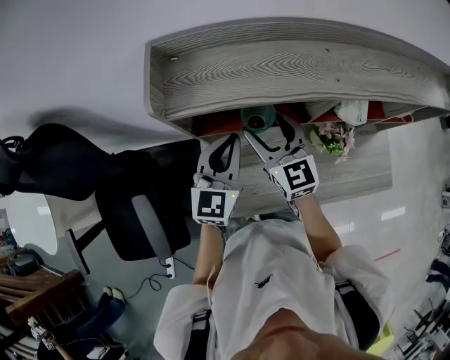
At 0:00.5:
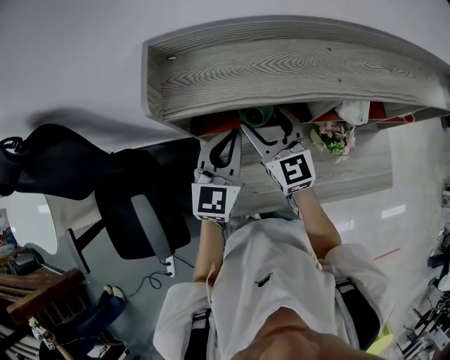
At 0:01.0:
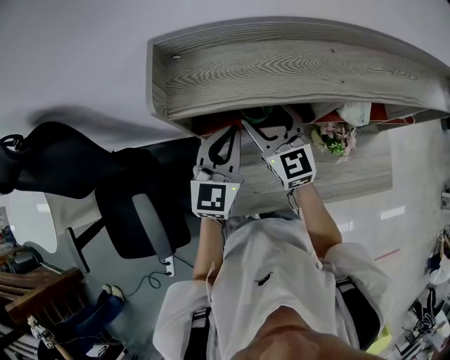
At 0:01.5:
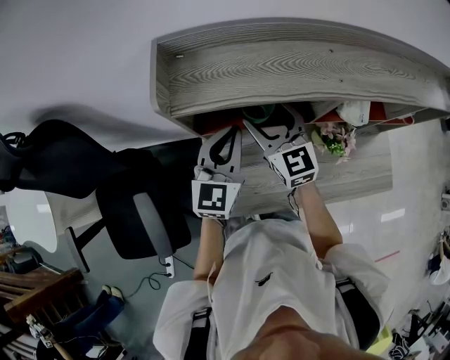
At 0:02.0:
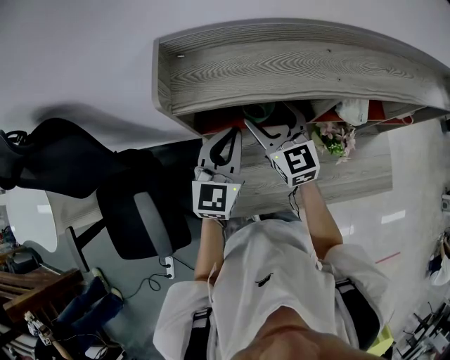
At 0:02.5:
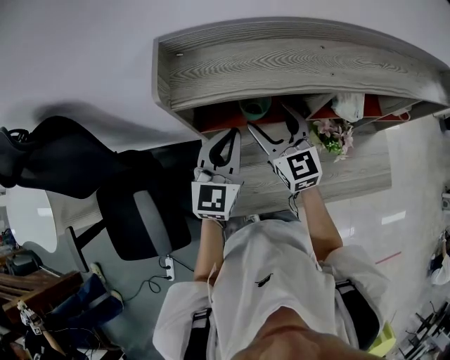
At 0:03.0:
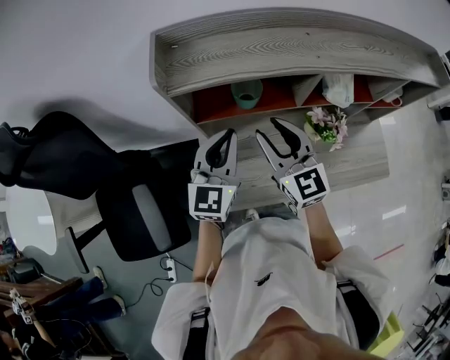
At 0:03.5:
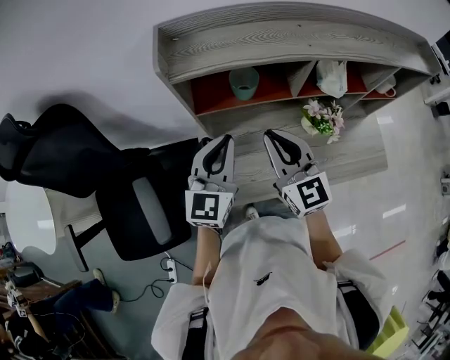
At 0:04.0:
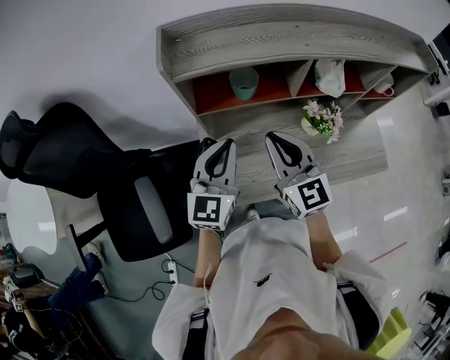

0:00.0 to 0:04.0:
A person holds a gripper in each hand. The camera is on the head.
0:00.0 to 0:02.0: There are only small adjustments of the grippers.
0:02.0 to 0:04.0: The two grippers go some 15 cm backward. The right gripper closes.

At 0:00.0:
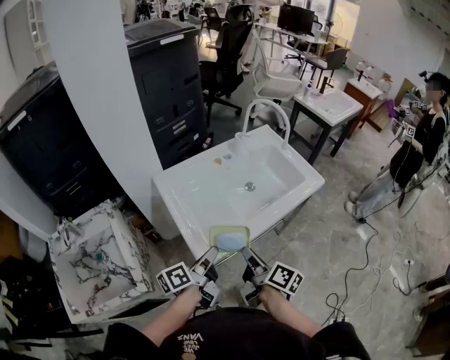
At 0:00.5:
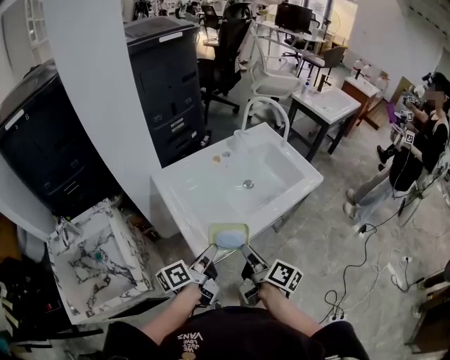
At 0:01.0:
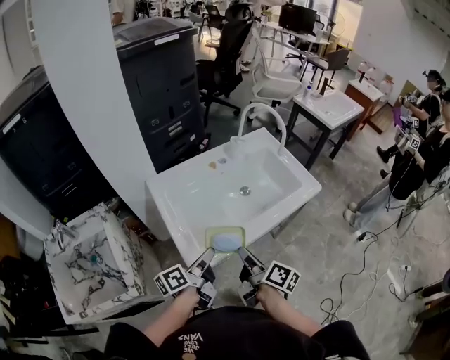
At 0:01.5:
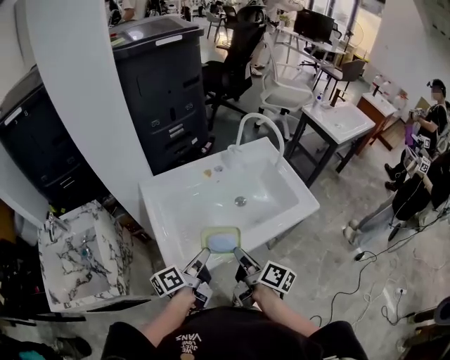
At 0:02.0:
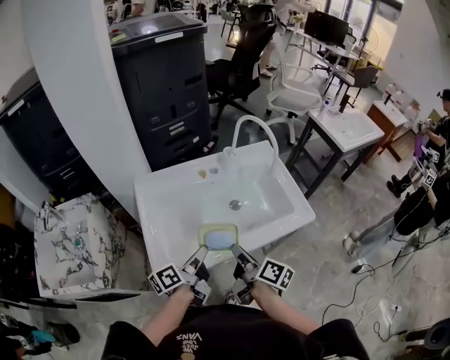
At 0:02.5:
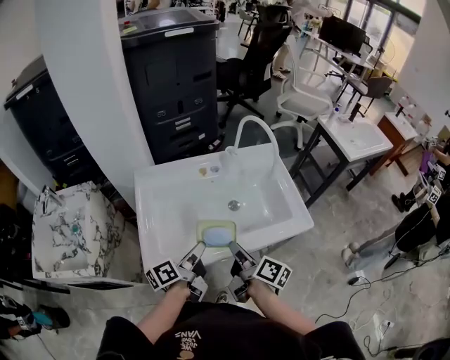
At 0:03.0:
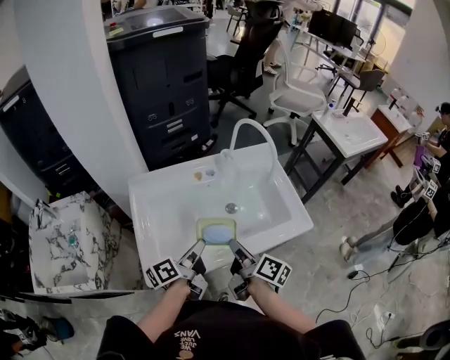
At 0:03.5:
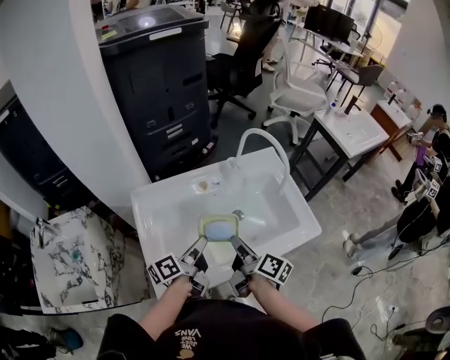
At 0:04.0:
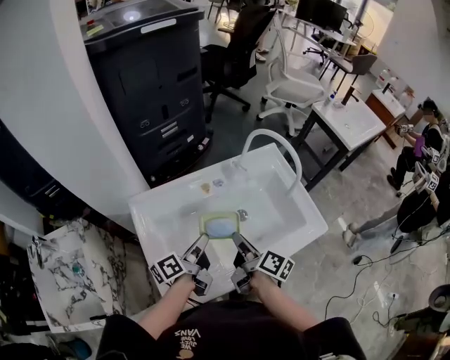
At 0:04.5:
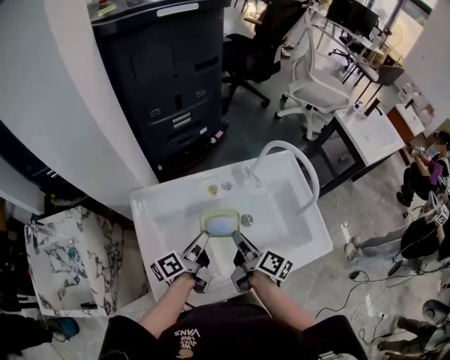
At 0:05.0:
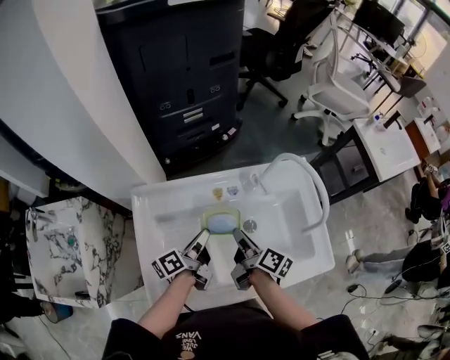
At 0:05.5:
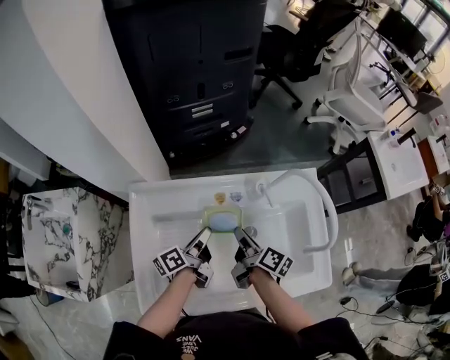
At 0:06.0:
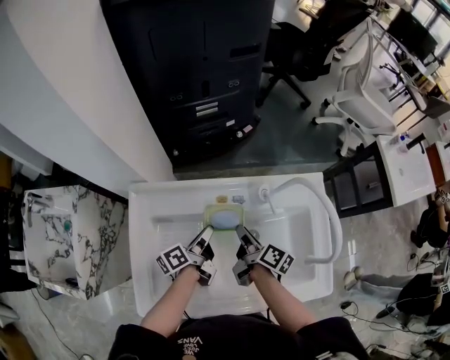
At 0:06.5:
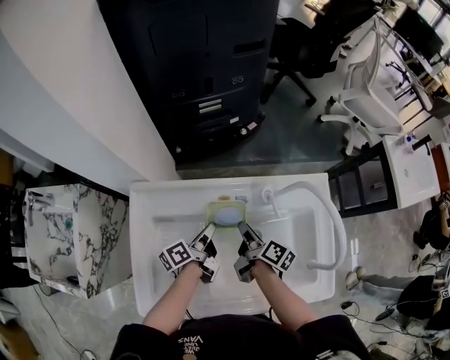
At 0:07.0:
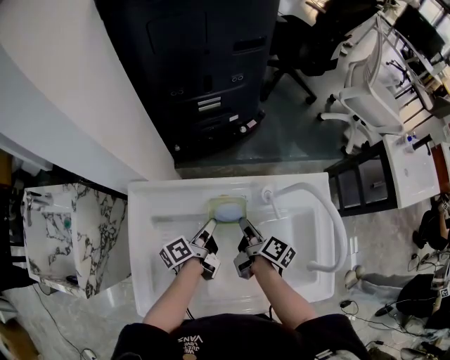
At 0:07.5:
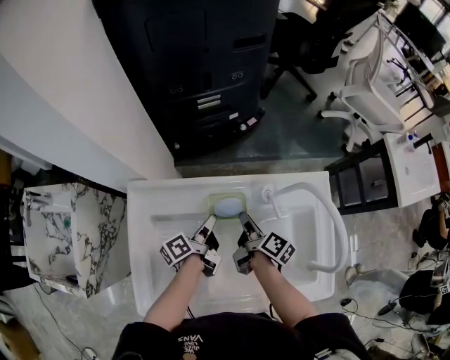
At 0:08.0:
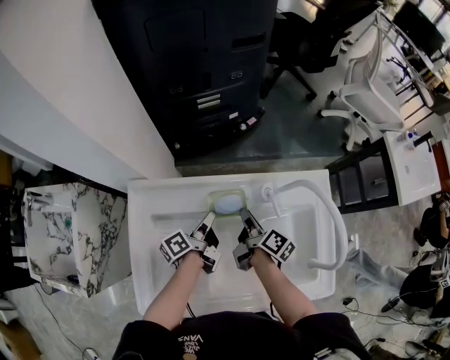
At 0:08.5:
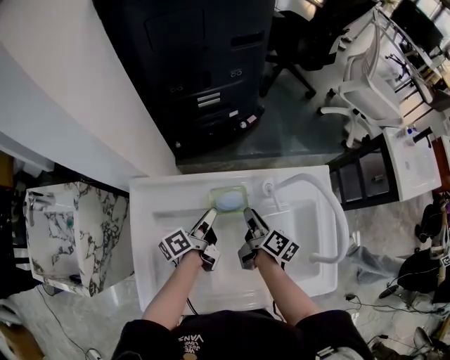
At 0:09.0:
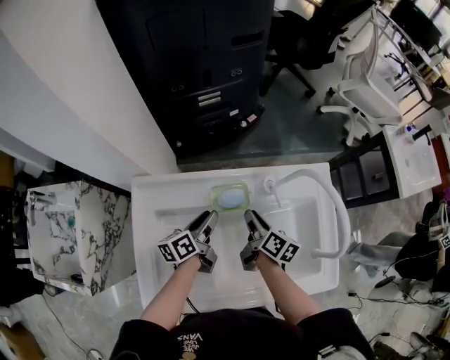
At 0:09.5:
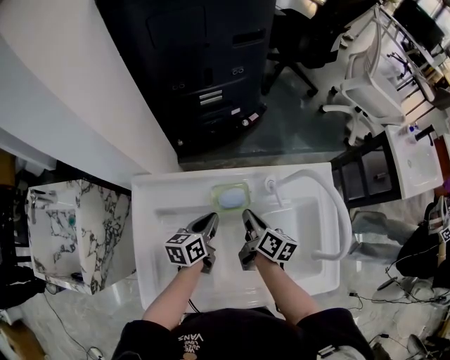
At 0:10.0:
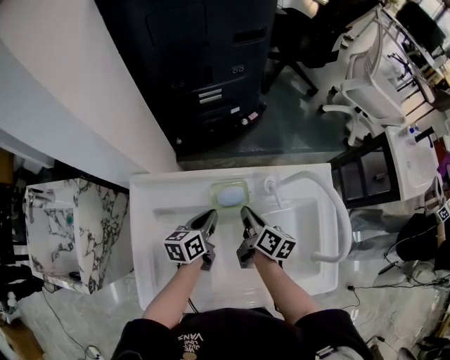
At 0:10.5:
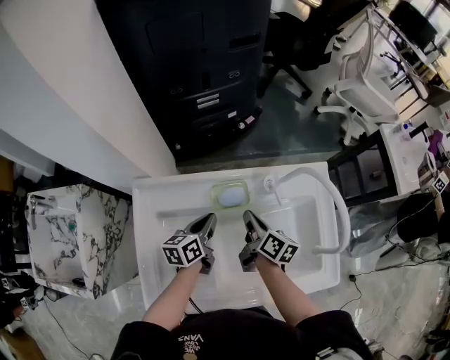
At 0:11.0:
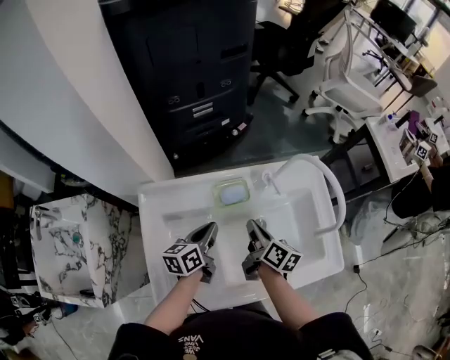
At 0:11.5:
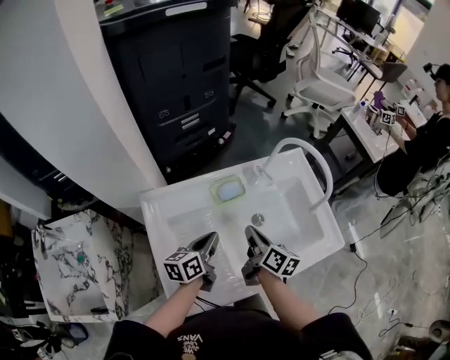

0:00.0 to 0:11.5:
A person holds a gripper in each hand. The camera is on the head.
0:00.0 to 0:02.0: The right gripper goes approximately 15 cm forward and to the right; the left gripper is displaced to the right and forward by approximately 15 cm.
0:02.0 to 0:04.0: Both grippers move forward, about 15 cm.
0:04.0 to 0:06.0: The grippers both shift forward and downward by some 15 cm. The right gripper changes its angle by about 20 degrees. The left gripper changes its angle by approximately 20 degrees.
0:06.0 to 0:07.5: The grippers make only small movements.
0:07.5 to 0:09.5: The left gripper rotates around the line of its fingers by roughly 40 degrees, clockwise from behind.
0:09.5 to 0:11.5: Both grippers travel together backward and upward, some 10 cm.

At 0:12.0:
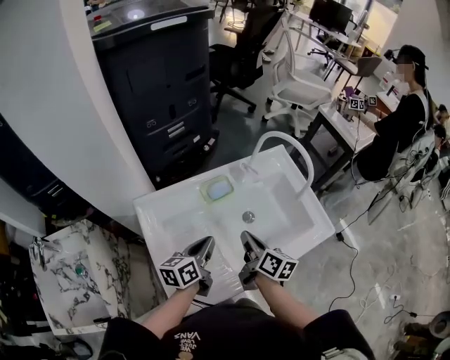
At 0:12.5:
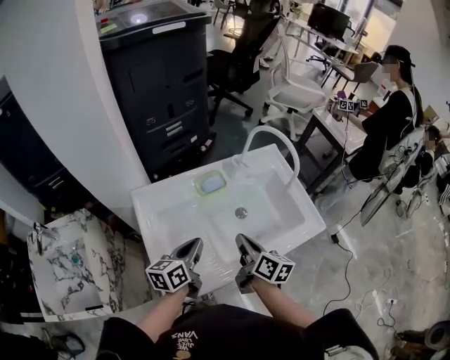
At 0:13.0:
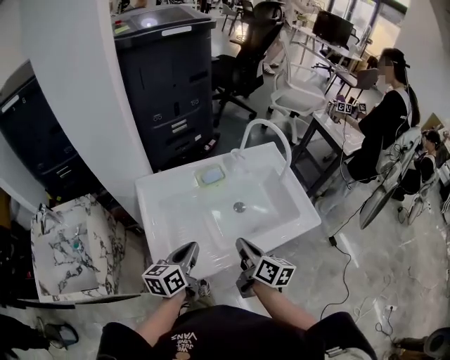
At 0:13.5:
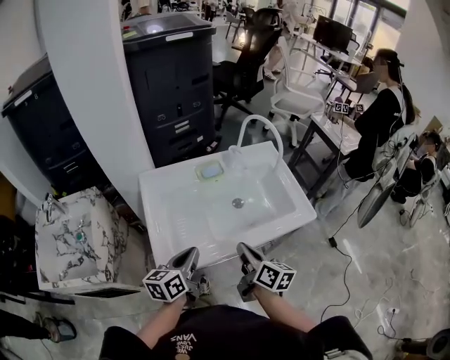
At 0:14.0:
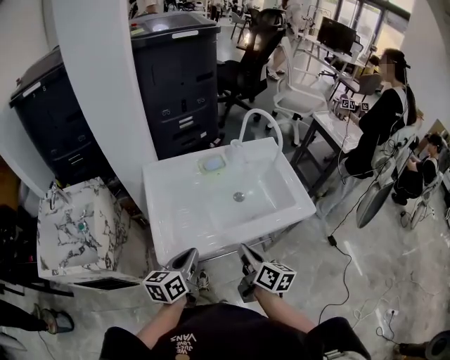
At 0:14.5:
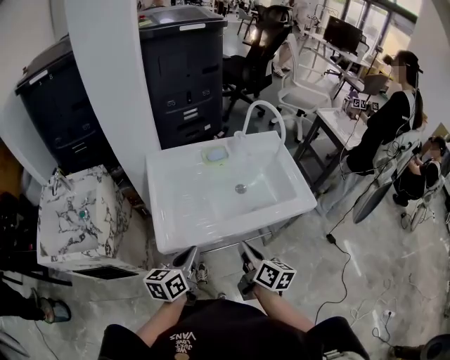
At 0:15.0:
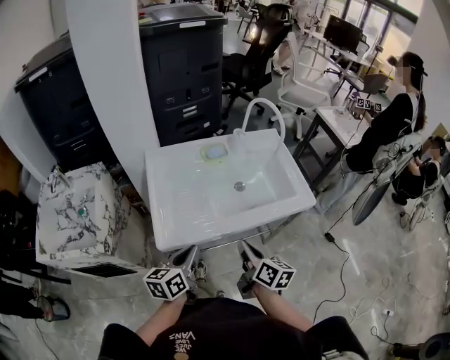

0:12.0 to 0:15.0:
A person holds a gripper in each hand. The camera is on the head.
0:12.0 to 0:13.5: The grippers both shift backward by approximately 20 cm.
0:13.5 to 0:15.0: The two grippers go about 5 cm backward.

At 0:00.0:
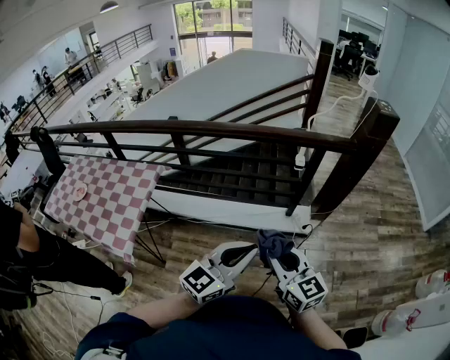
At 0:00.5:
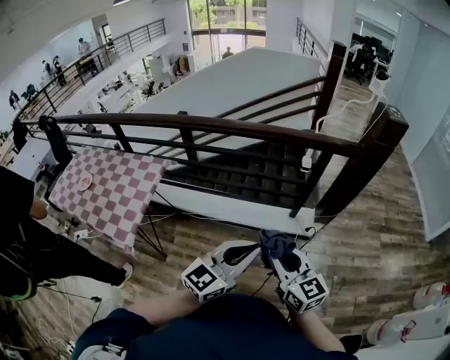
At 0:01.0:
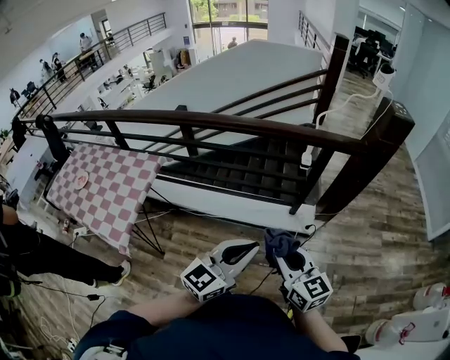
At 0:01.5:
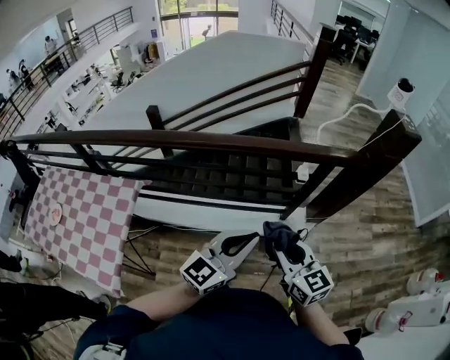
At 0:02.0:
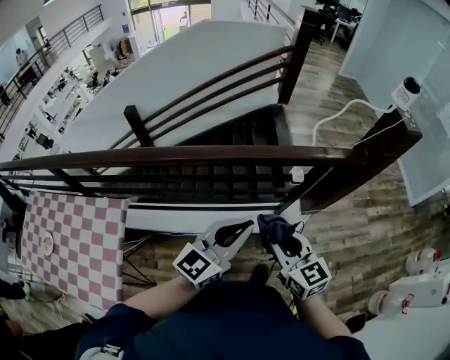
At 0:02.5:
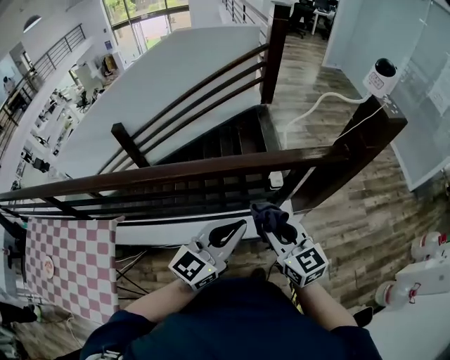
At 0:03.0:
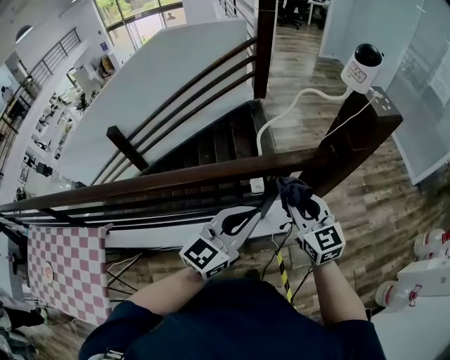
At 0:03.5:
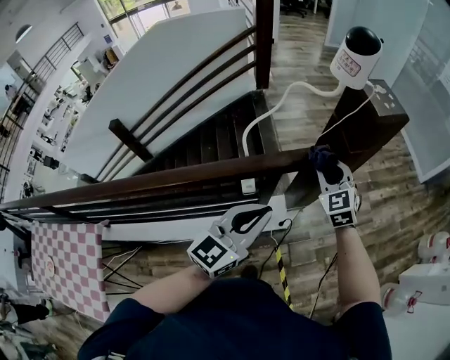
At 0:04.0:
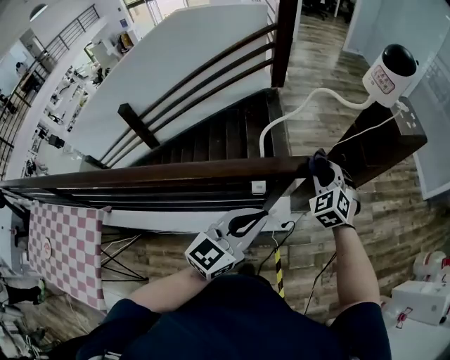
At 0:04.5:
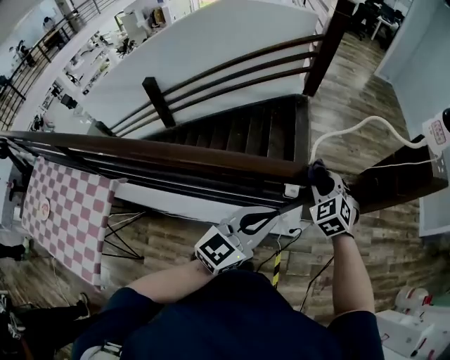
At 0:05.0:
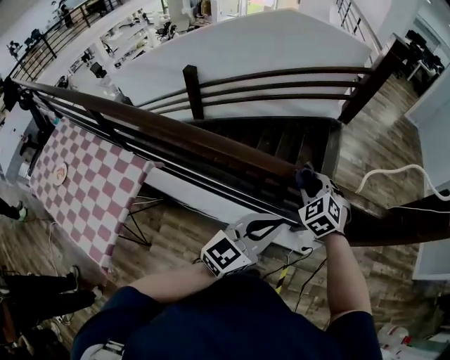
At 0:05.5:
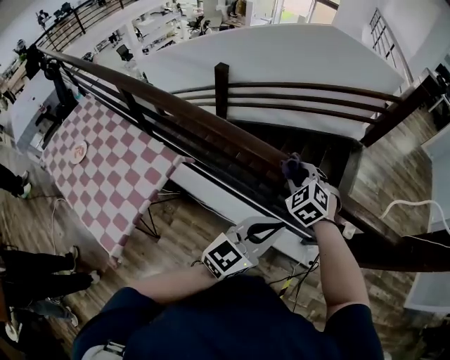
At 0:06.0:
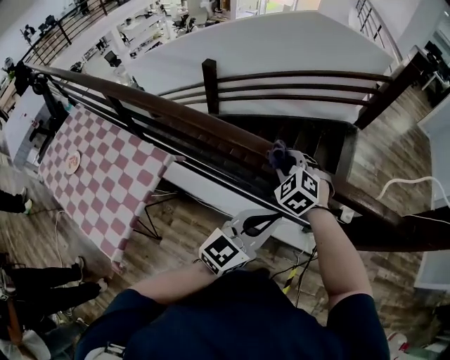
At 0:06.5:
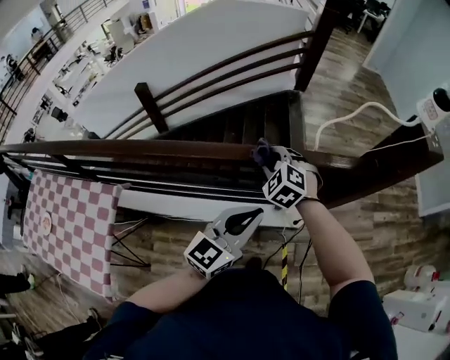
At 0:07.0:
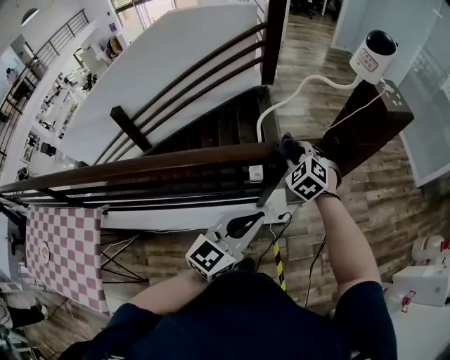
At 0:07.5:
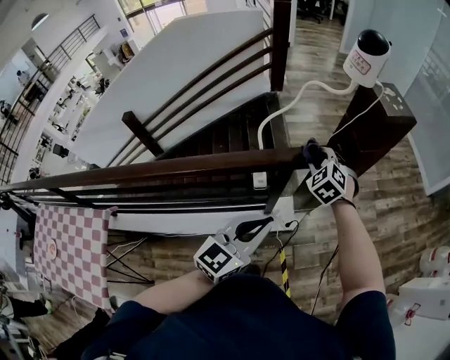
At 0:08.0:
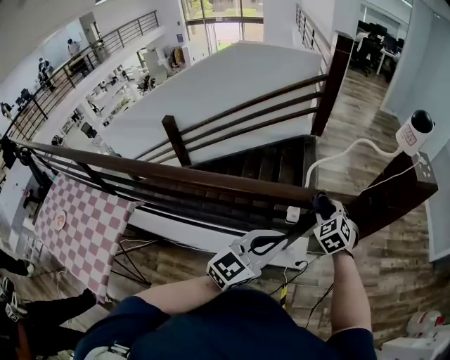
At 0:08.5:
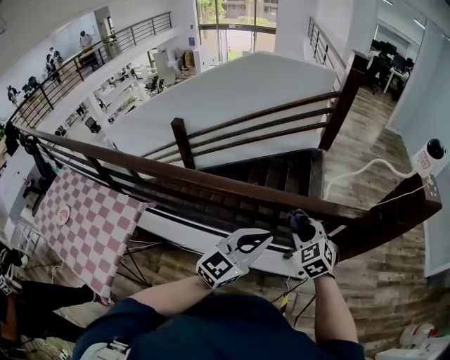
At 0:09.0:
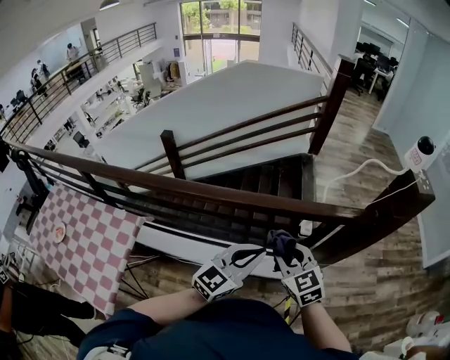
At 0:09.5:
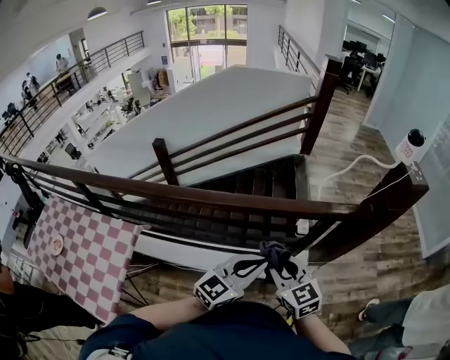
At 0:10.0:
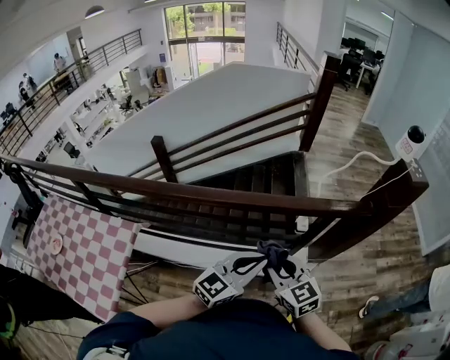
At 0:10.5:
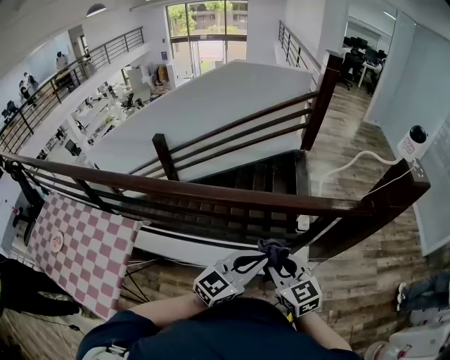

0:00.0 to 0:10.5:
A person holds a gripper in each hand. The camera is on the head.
0:00.0 to 0:02.0: Both grippers travel together forward, about 30 cm.
0:02.0 to 0:04.0: The left gripper shifts some 30 cm to the right and forward. Meanwhile the right gripper is displaced forward and to the right by roughly 50 cm, and turns by some 50 degrees.
0:04.0 to 0:06.5: The right gripper rotates some 30 degrees.
0:06.5 to 0:08.5: The right gripper heads backward, covering some 5 cm, and travels to the right and back again, about 35 cm each way, while the left gripper travels to the right and back again, roughly 20 cm each way.
0:08.5 to 0:10.5: The right gripper travels backward and to the left by some 15 cm, and rotates roughly 30 degrees; the left gripper moves backward, roughly 5 cm.
